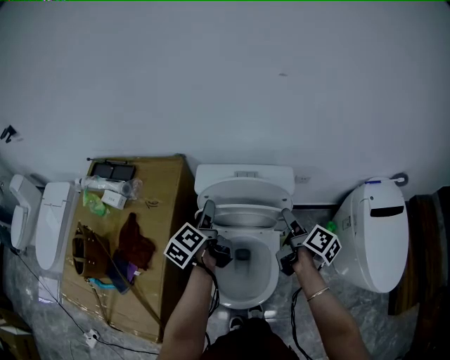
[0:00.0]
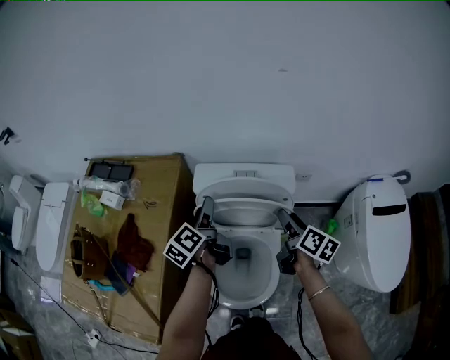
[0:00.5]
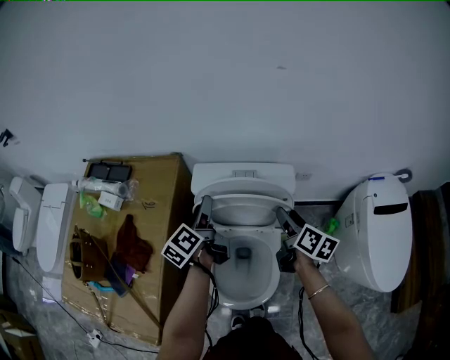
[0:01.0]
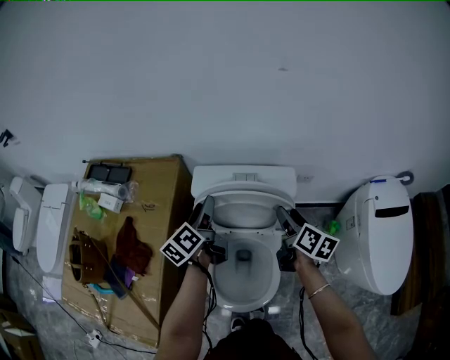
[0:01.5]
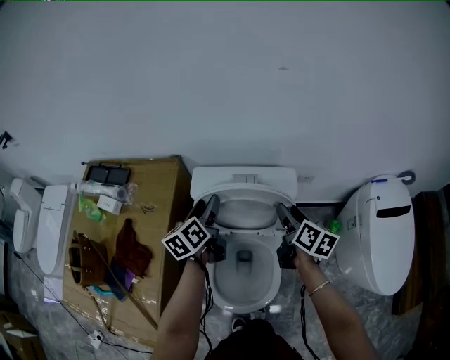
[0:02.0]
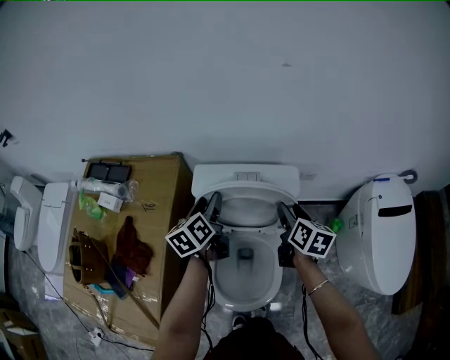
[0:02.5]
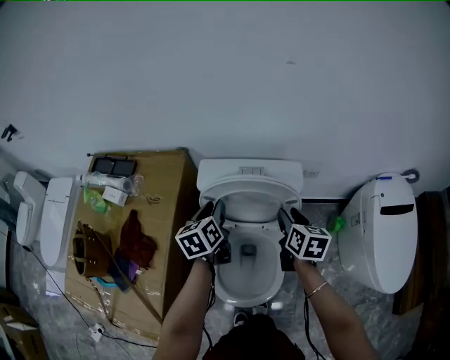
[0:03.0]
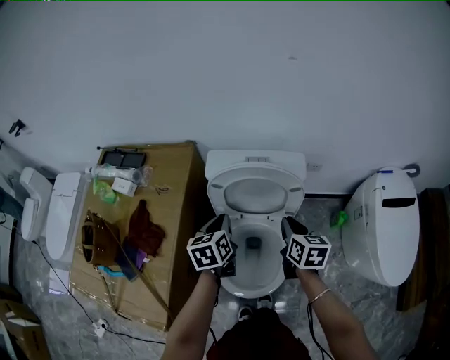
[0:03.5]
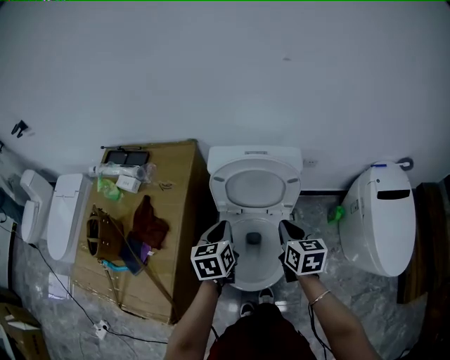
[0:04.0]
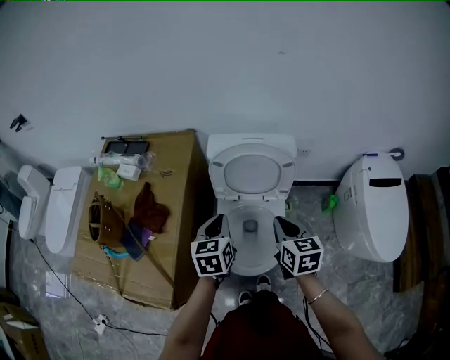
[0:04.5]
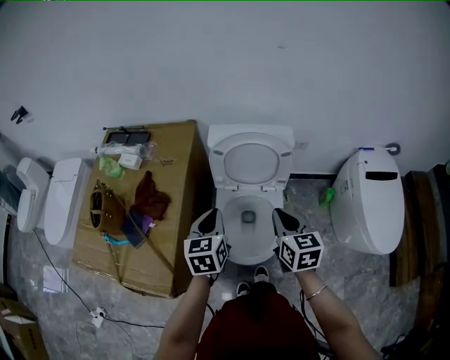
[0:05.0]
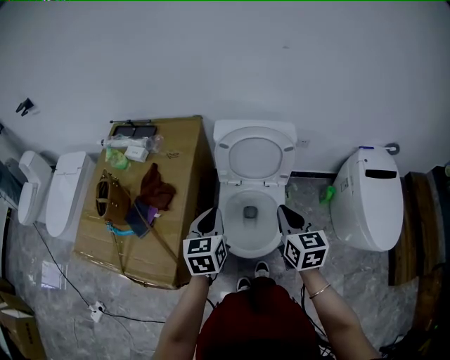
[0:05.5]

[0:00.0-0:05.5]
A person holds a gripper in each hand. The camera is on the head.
0:00.0 to 0:02.0: The grippers both shift forward by some 5 cm. The left gripper changes its angle by approximately 20 degrees, while the right gripper changes its angle by about 20 degrees.
0:02.0 to 0:03.5: The grippers both shift backward by roughly 10 cm. The left gripper swivels about 20 degrees, and closes; the right gripper turns by about 20 degrees, and closes up.
0:03.5 to 0:05.5: The grippers both shift backward and upward by about 20 cm.

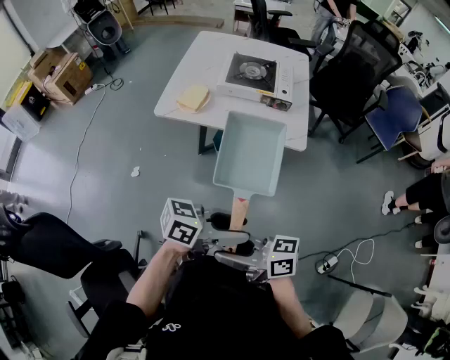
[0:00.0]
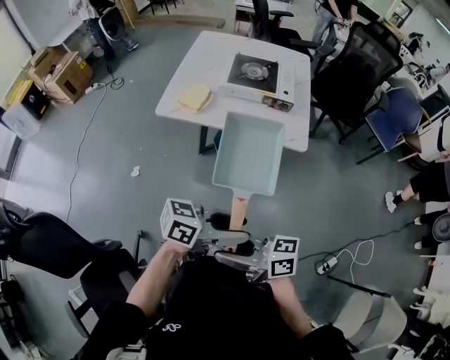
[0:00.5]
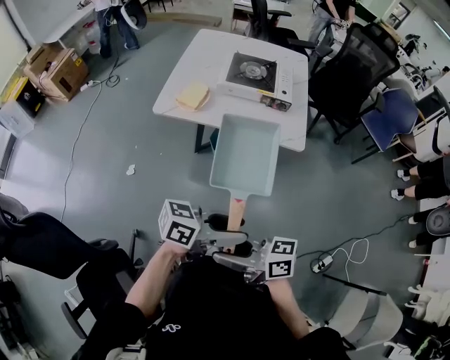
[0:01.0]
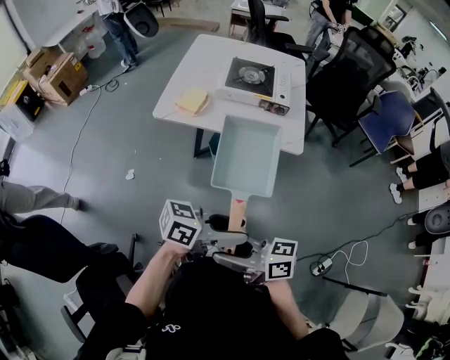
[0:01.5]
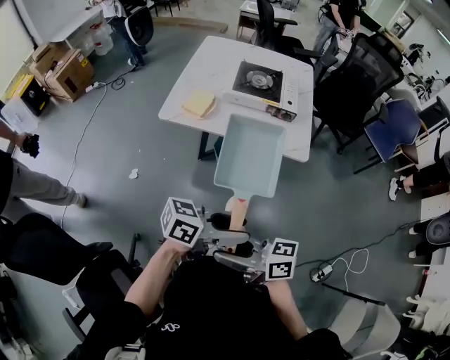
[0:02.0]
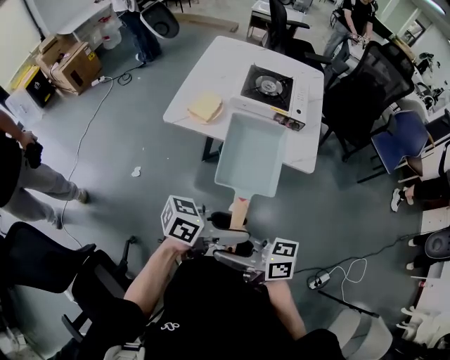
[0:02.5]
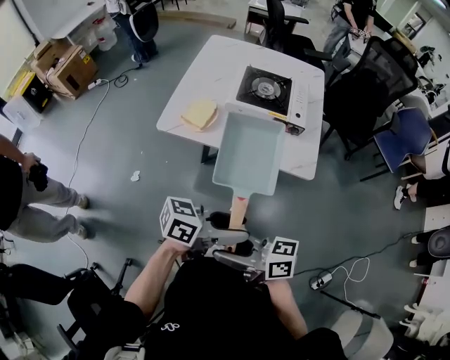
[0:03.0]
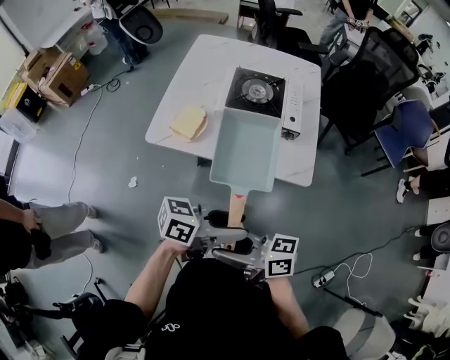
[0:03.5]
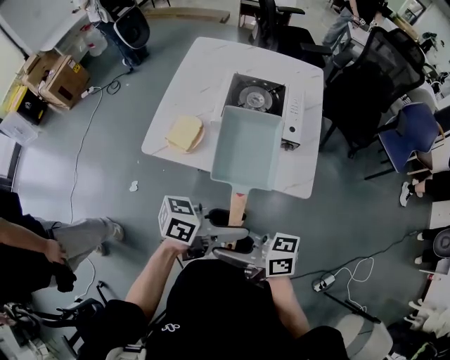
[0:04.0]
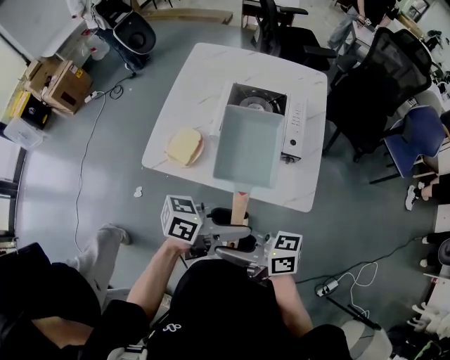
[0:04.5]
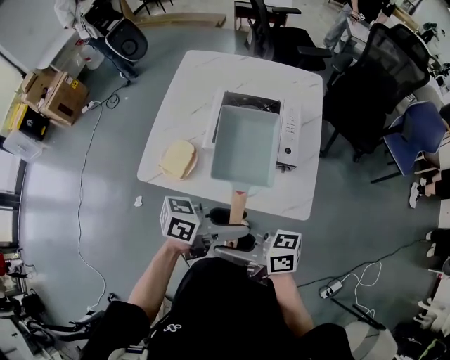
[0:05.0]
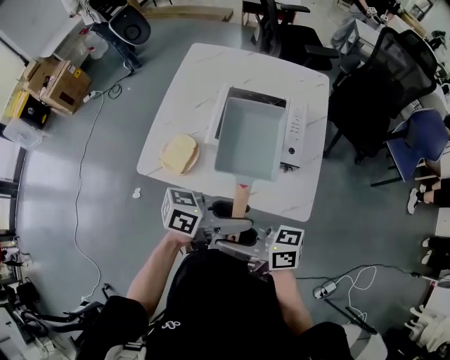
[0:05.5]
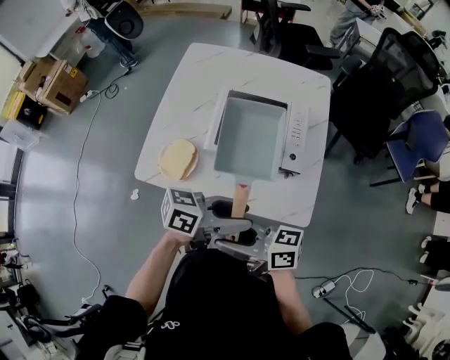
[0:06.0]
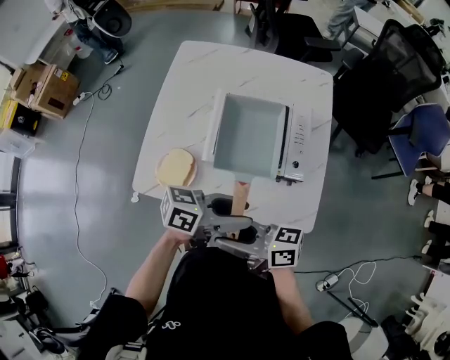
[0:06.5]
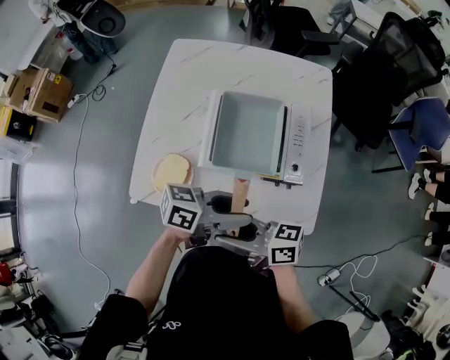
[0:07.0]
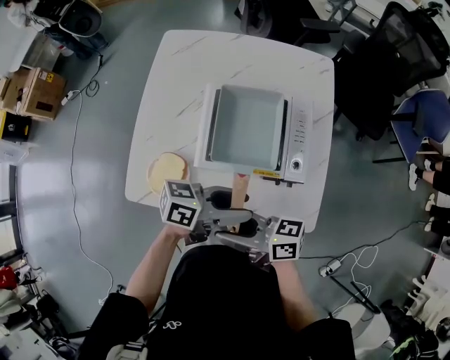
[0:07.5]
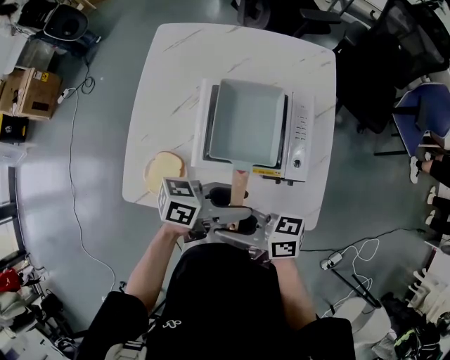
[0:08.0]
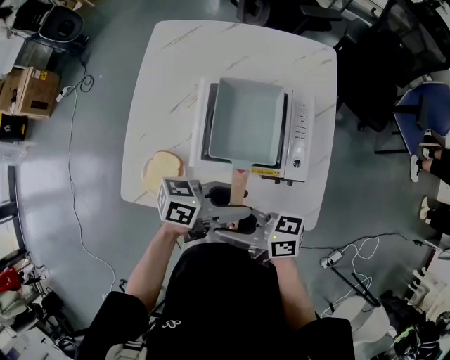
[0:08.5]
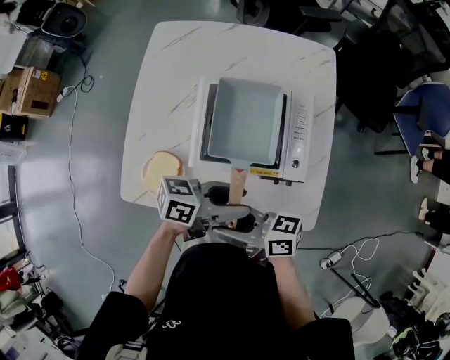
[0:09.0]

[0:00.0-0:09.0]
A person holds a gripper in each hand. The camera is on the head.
0:00.0 to 0:02.0: There are only small adjustments of the grippers.
0:02.0 to 0:04.5: The right gripper changes place by about 25 cm. The left gripper ends up approximately 25 cm from where it was.
0:04.5 to 0:07.0: The left gripper moves roughly 15 cm. Meanwhile the right gripper changes place by about 15 cm.
0:07.0 to 0:09.0: The left gripper ends up some 5 cm from where it was; the right gripper moves some 5 cm.

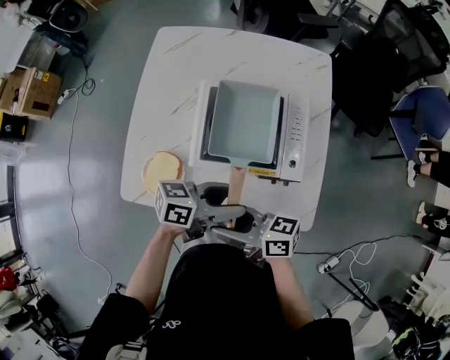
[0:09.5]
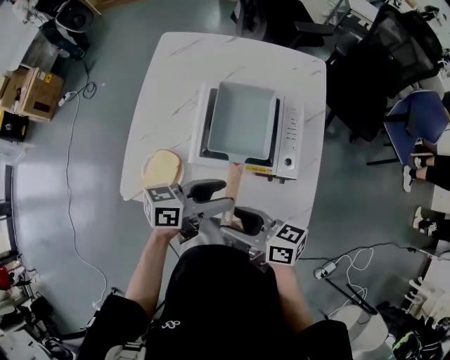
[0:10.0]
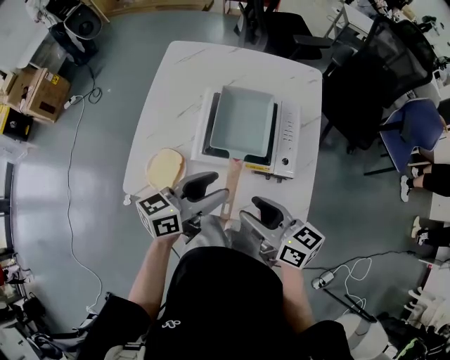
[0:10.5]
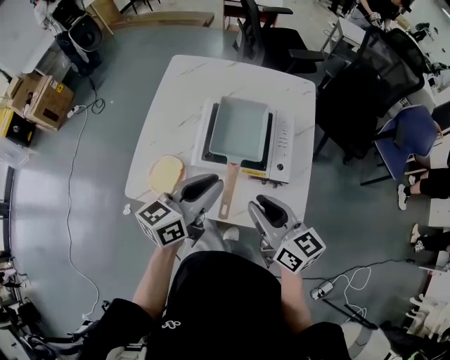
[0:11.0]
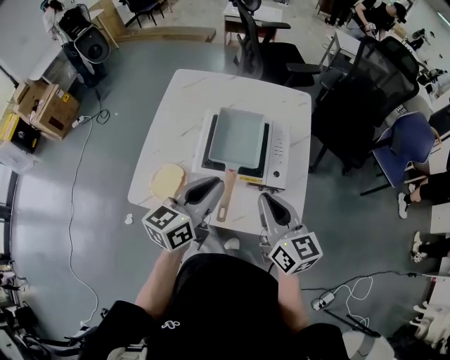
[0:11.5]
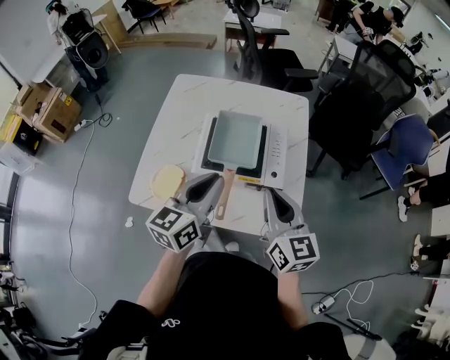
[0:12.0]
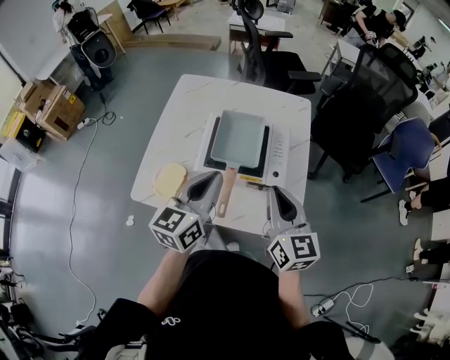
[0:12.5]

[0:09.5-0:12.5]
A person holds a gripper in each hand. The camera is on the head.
0:09.5 to 0:11.0: The right gripper ends up some 15 cm from where it was, turns by some 40 degrees, and closes; the left gripper goes roughly 10 cm upward, swivels roughly 40 degrees, and closes its fingers.
0:11.0 to 0:12.5: The right gripper heads upward, covering approximately 5 cm, rotates some 20 degrees, and closes its fingers.

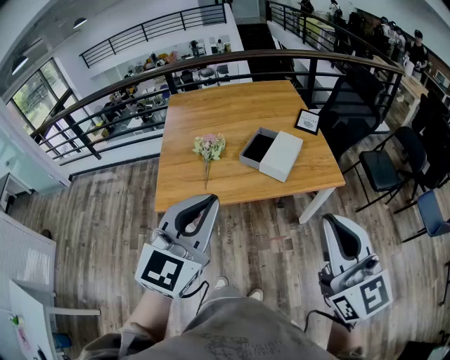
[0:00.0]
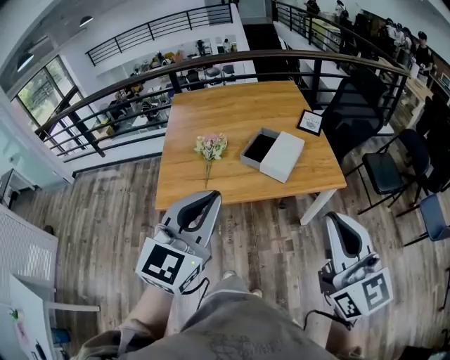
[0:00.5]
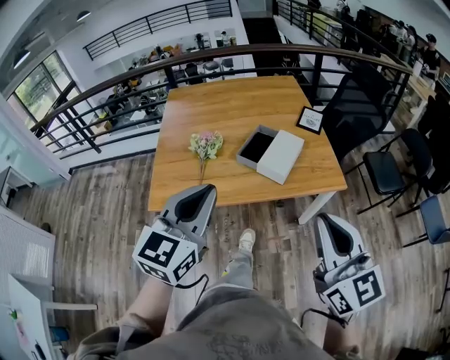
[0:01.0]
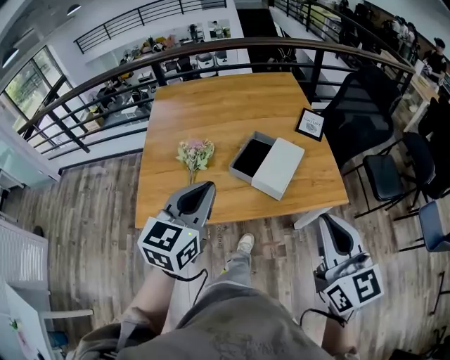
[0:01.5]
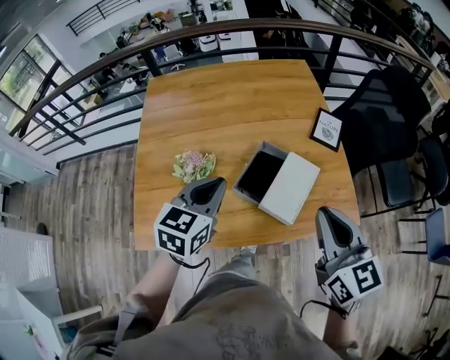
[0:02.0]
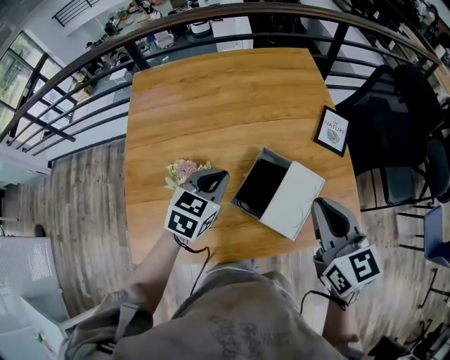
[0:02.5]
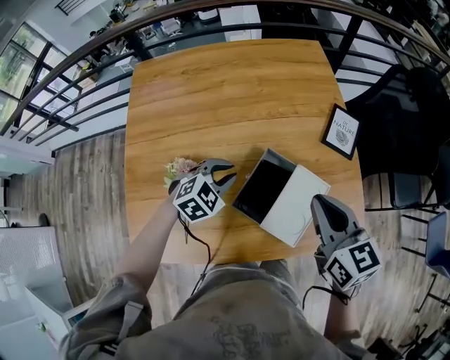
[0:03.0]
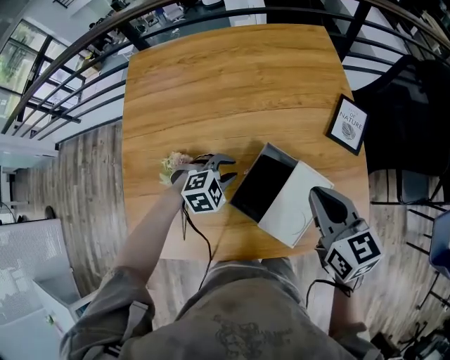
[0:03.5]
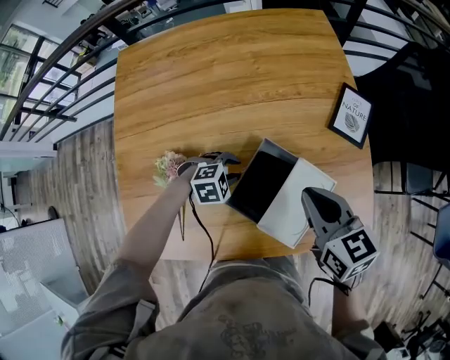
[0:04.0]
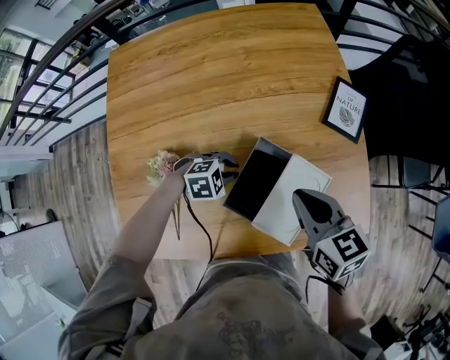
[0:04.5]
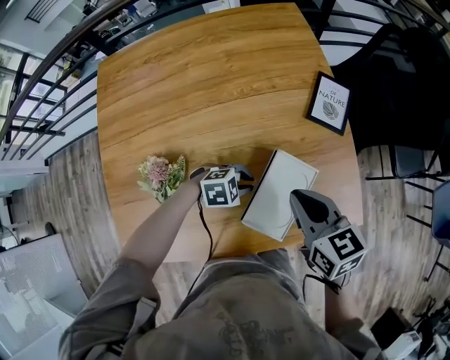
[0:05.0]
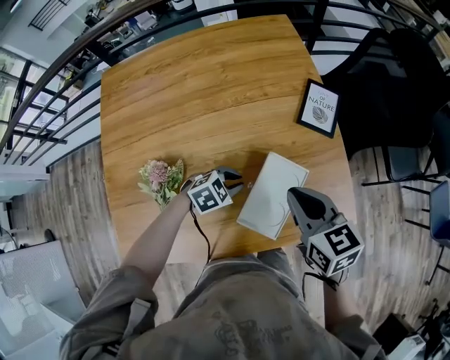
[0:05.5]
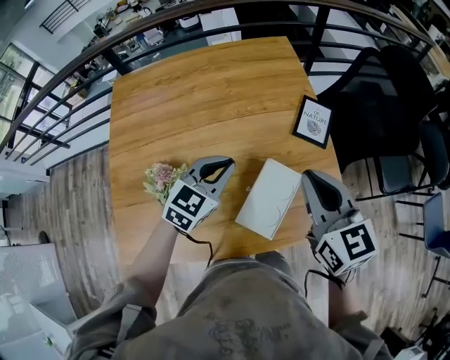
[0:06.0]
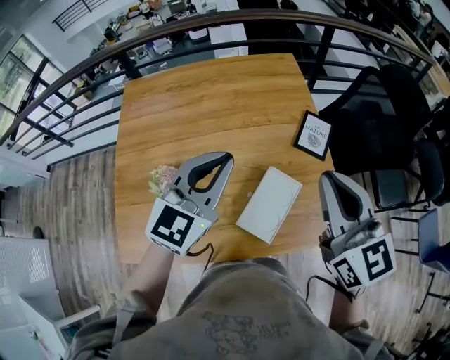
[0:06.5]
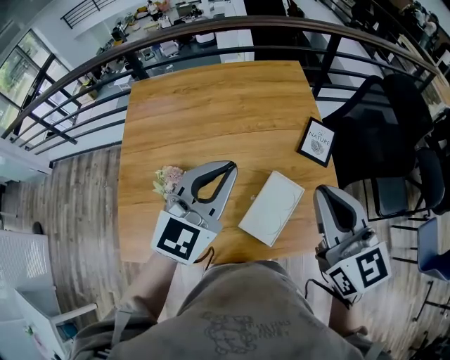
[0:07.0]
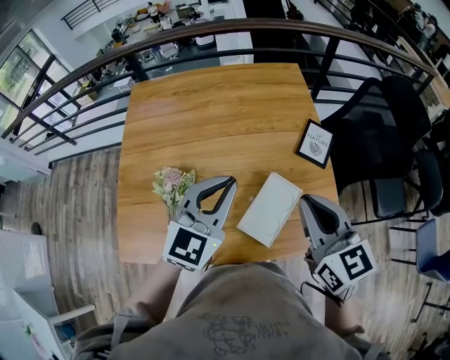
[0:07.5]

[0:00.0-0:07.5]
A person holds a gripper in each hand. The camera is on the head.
0:00.0 to 0:02.0: The right gripper shifts some 35 cm forward. The left gripper heads forward and downward, covering some 40 cm, and turns by roughly 30 degrees.
0:02.0 to 0:04.0: The left gripper travels downward and forward by some 35 cm, angles its fingers downward, by approximately 40 degrees, and opens its fingers; the right gripper travels forward and downward by some 25 cm, and changes its angle by some 20 degrees.
0:04.0 to 0:05.5: The left gripper shifts by about 10 cm. The right gripper moves about 5 cm.
0:05.5 to 0:07.5: The left gripper shifts some 30 cm upward, and tips its fingers upward by some 40 degrees; the right gripper is displaced upward by some 15 cm, and turns by about 20 degrees.

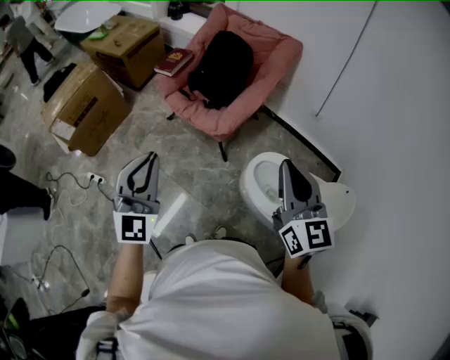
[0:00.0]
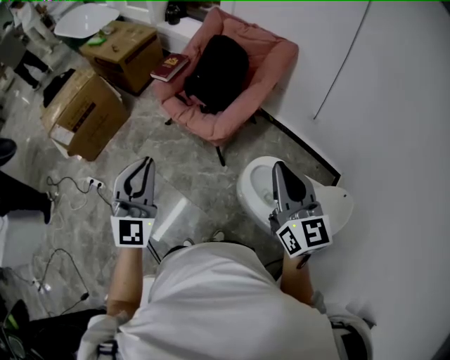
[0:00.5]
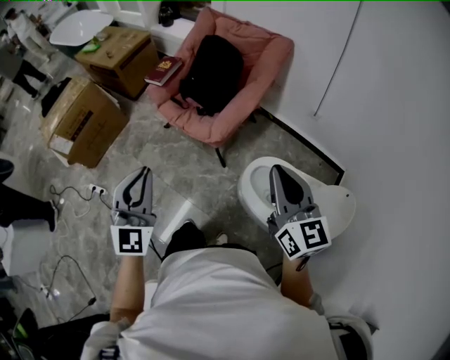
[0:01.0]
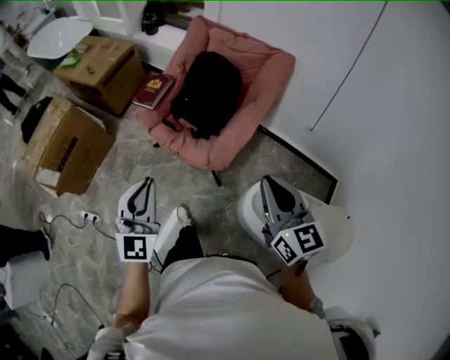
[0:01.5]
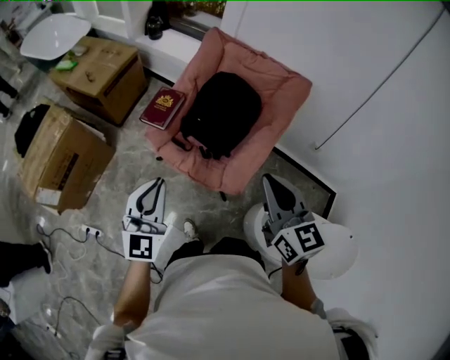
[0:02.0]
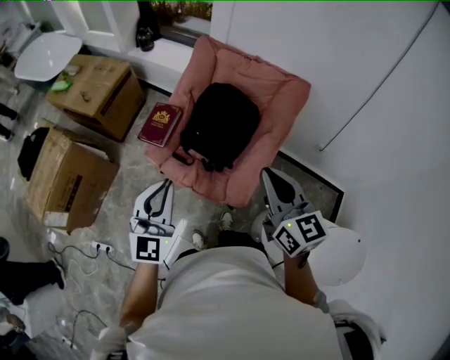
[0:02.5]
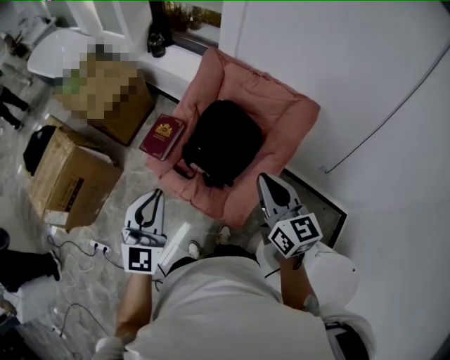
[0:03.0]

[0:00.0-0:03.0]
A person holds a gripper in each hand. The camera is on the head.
0:00.0 to 0:01.5: Both grippers travel together forward, about 20 cm.
0:01.5 to 0:03.0: The two grippers go roughly 30 cm forward.
